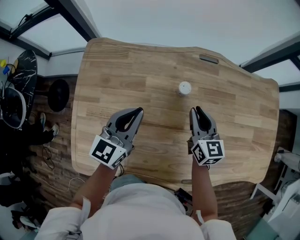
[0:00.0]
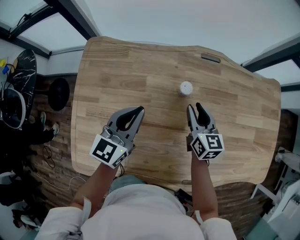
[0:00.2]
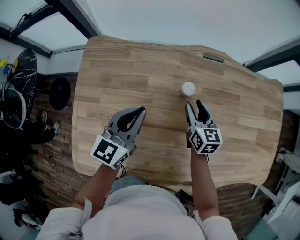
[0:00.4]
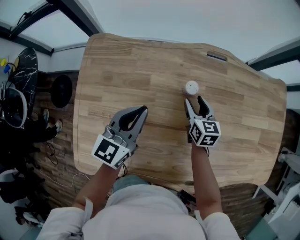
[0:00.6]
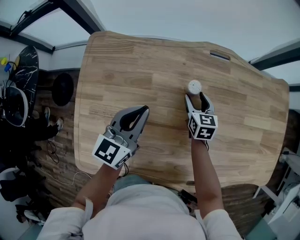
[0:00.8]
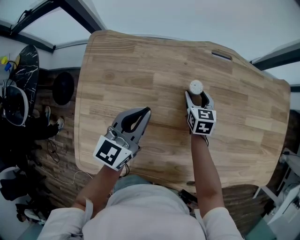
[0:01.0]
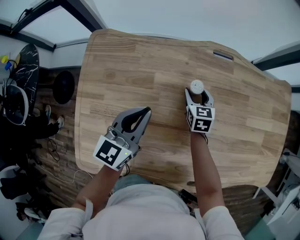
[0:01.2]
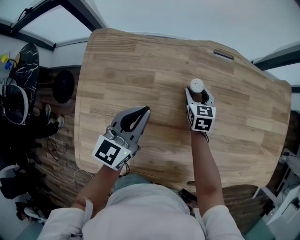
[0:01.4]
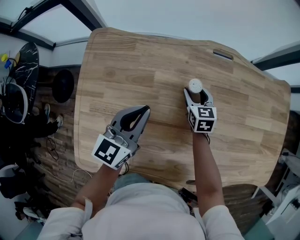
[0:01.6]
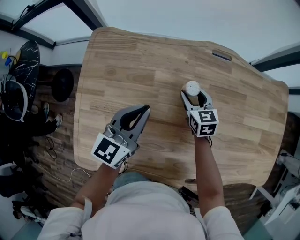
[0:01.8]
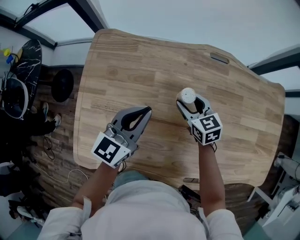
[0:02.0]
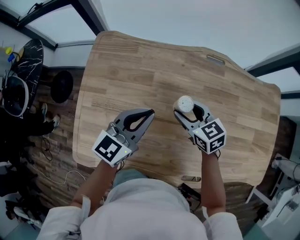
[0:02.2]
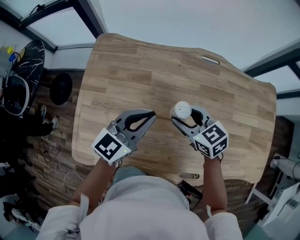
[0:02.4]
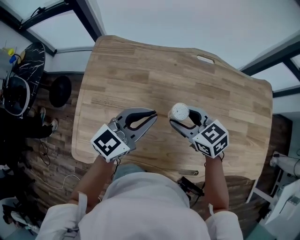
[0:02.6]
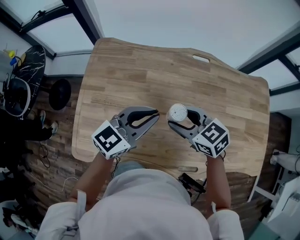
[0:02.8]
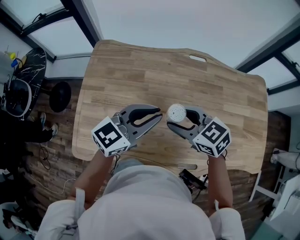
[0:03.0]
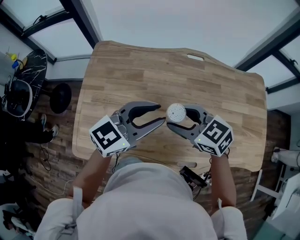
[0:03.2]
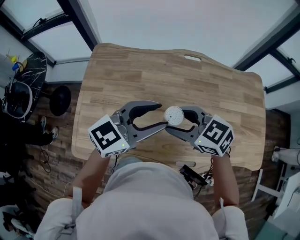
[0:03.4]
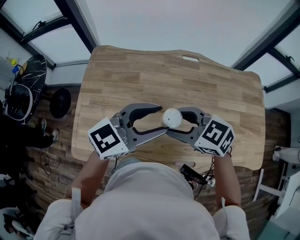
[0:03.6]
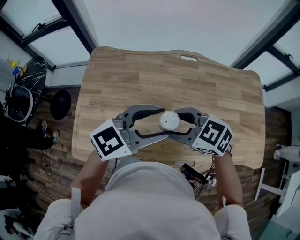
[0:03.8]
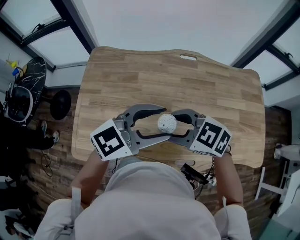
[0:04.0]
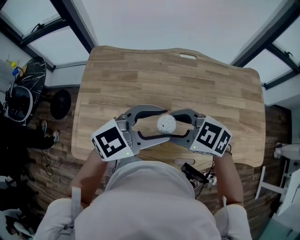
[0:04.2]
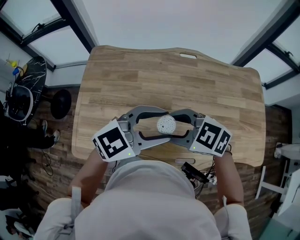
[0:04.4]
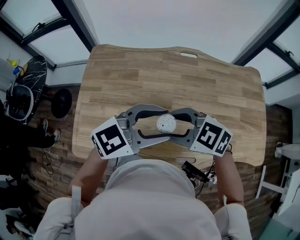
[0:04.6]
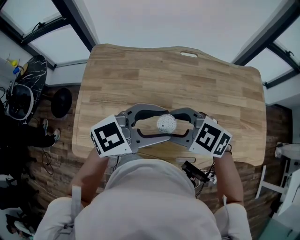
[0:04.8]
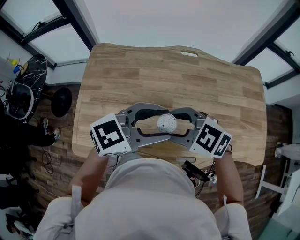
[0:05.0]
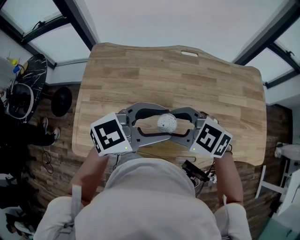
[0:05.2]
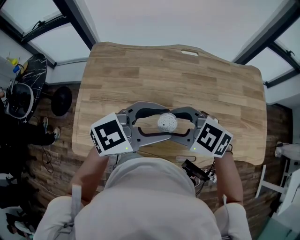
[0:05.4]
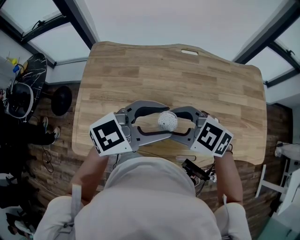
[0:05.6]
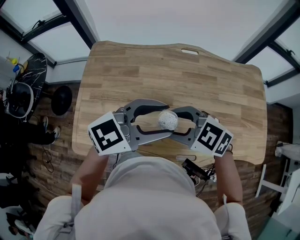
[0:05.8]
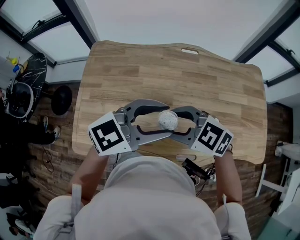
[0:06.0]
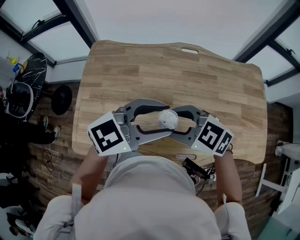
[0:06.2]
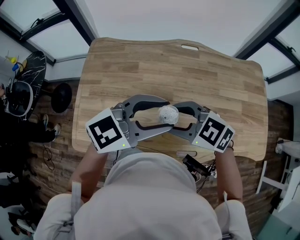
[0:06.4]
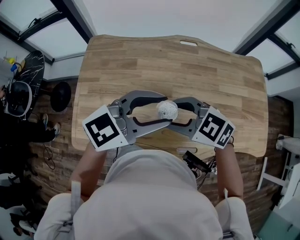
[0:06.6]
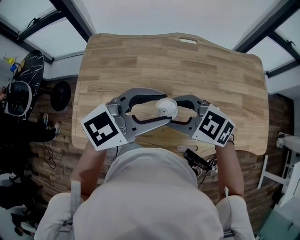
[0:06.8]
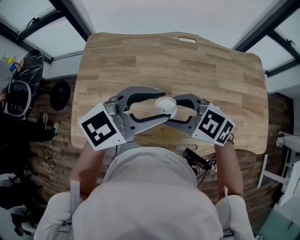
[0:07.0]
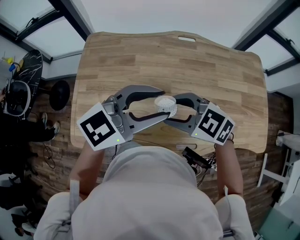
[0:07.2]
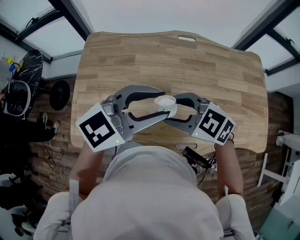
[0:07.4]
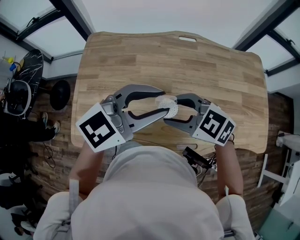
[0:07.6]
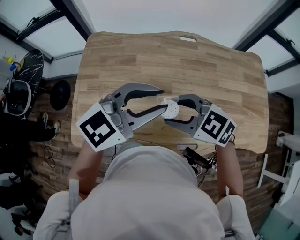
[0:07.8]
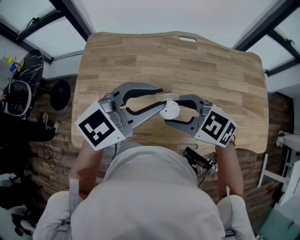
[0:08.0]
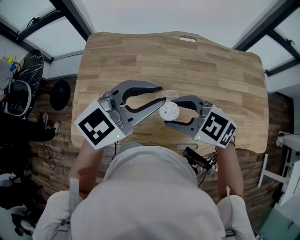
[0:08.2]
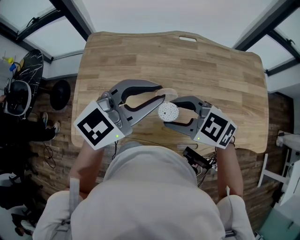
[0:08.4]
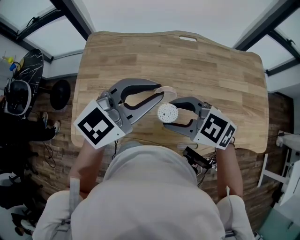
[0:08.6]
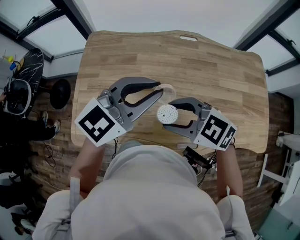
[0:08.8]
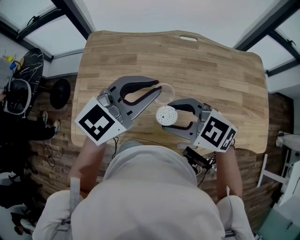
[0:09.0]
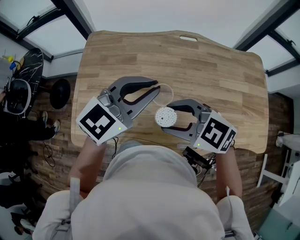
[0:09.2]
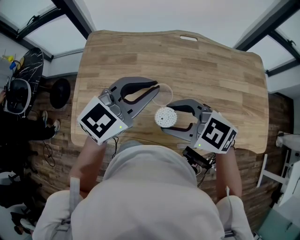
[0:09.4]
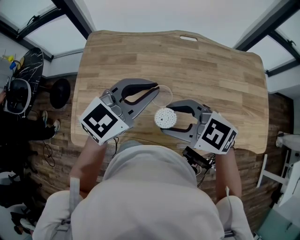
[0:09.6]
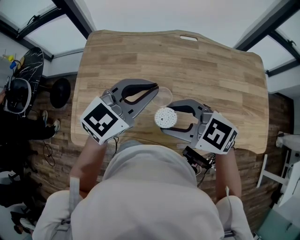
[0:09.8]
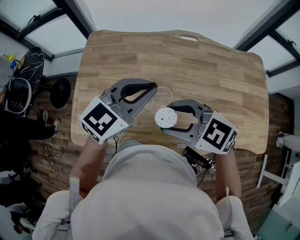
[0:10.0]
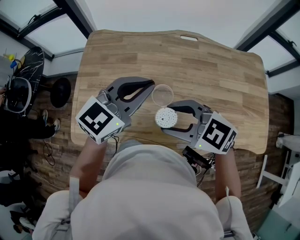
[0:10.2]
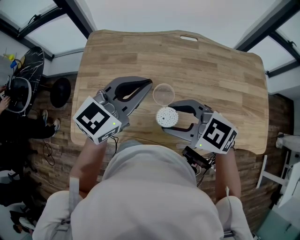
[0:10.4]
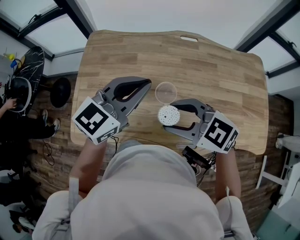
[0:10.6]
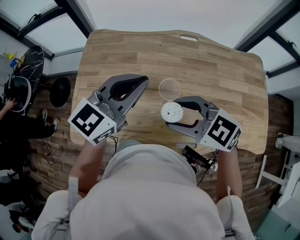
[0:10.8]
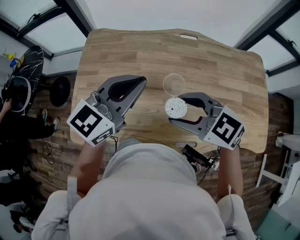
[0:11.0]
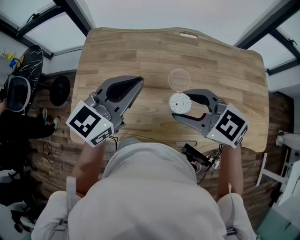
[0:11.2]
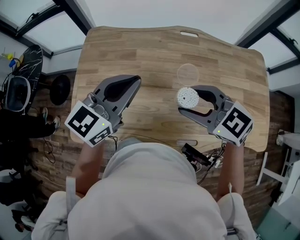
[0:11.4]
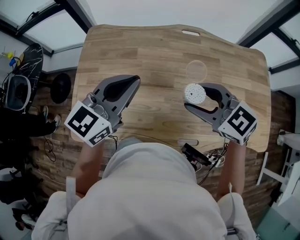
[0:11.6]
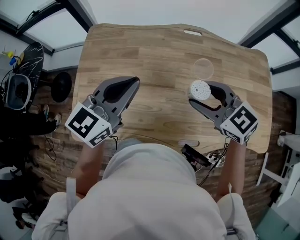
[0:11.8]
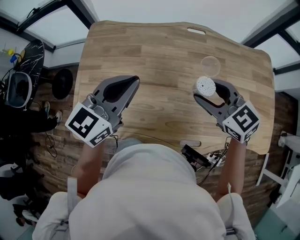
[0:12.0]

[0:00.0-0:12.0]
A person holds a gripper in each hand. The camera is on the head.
0:00.0 to 0:01.6: The right gripper goes about 15 cm downward and forward, and opens its fingers.
0:01.6 to 0:03.0: The left gripper shifts roughly 20 cm backward, upward and to the right, and swivels about 30 degrees; the right gripper shifts roughly 30 cm backward and upward, and swivels about 40 degrees.
0:03.0 to 0:04.4: The right gripper ends up approximately 10 cm from where it was, while the left gripper shifts by roughly 10 cm, turns by about 20 degrees, and opens up.
0:04.4 to 0:06.0: There are only small adjustments of the grippers.
0:06.0 to 0:07.6: The left gripper closes up.
0:07.6 to 0:09.0: The left gripper closes its fingers.
0:09.0 to 0:10.4: The grippers stay close to where they were, moving slightly.
0:10.4 to 0:12.0: The left gripper ends up roughly 5 cm from where it was. Meanwhile the right gripper moves roughly 15 cm, and rotates roughly 20 degrees.

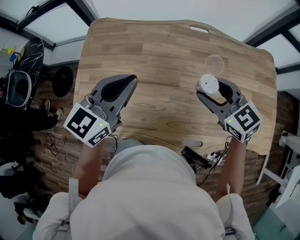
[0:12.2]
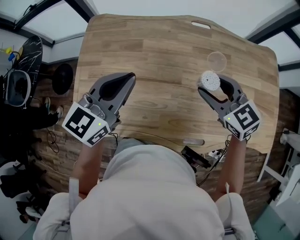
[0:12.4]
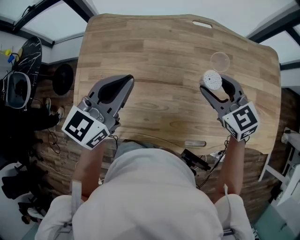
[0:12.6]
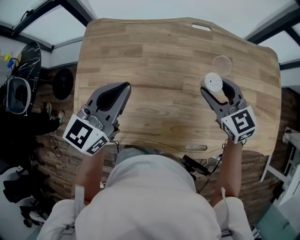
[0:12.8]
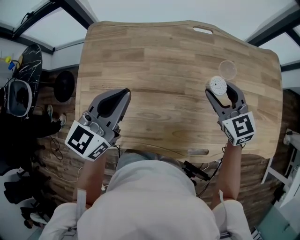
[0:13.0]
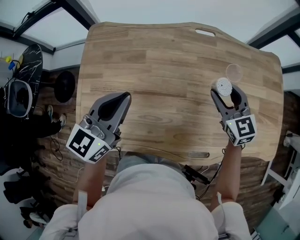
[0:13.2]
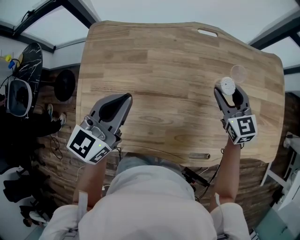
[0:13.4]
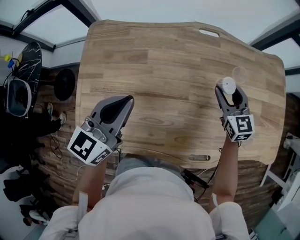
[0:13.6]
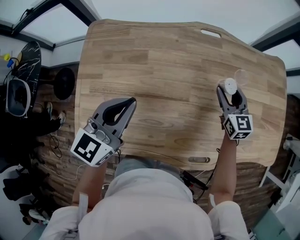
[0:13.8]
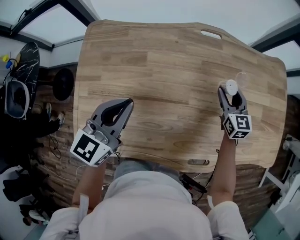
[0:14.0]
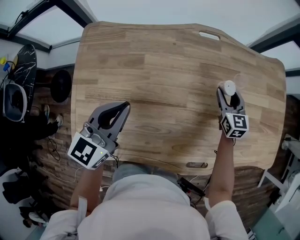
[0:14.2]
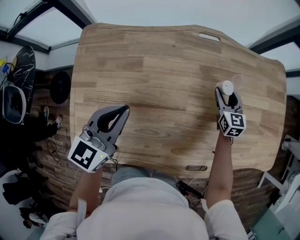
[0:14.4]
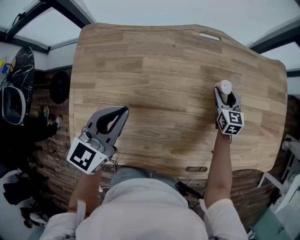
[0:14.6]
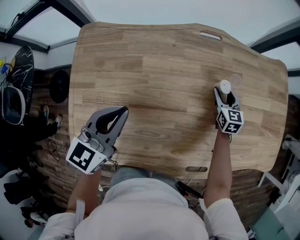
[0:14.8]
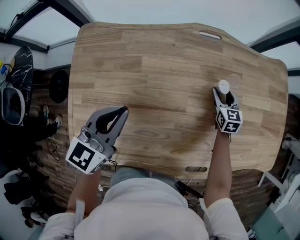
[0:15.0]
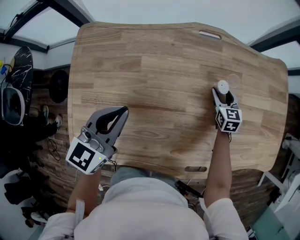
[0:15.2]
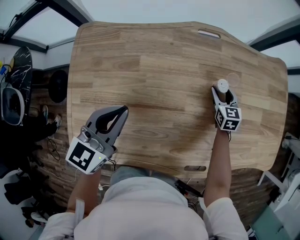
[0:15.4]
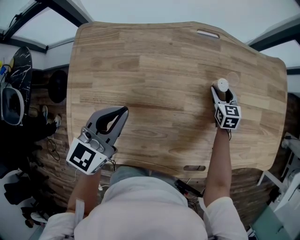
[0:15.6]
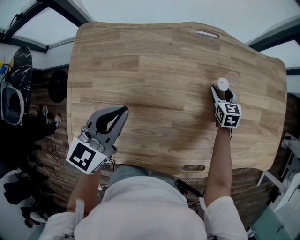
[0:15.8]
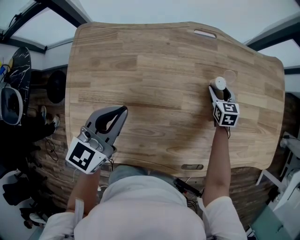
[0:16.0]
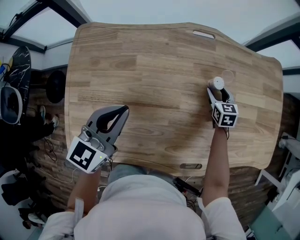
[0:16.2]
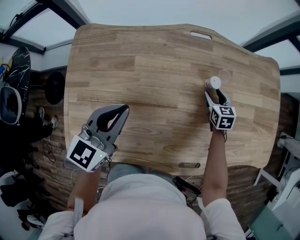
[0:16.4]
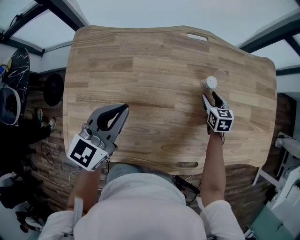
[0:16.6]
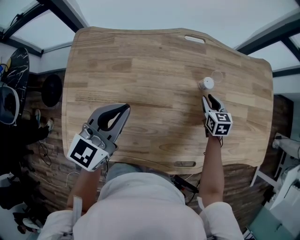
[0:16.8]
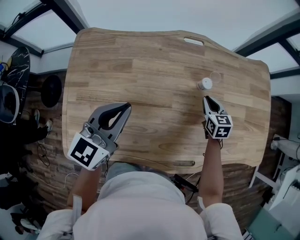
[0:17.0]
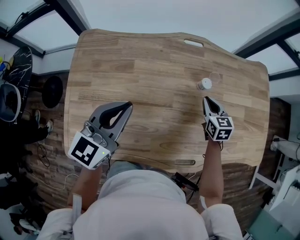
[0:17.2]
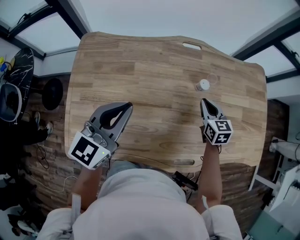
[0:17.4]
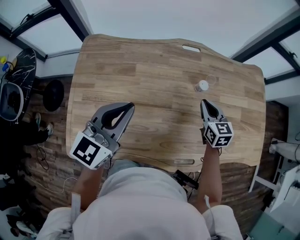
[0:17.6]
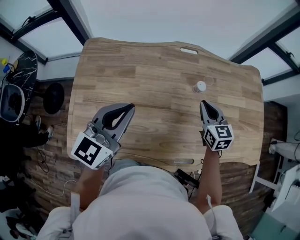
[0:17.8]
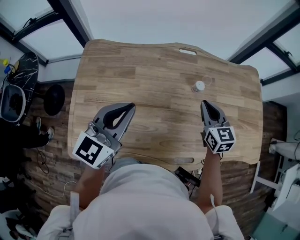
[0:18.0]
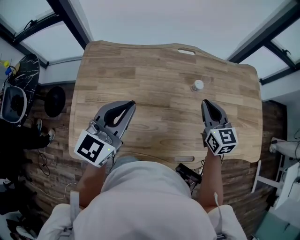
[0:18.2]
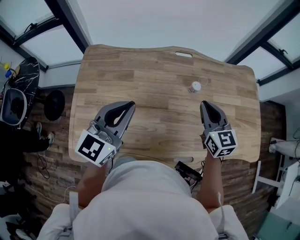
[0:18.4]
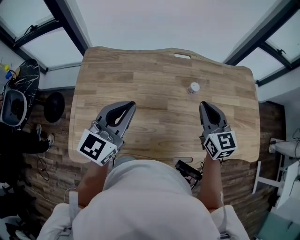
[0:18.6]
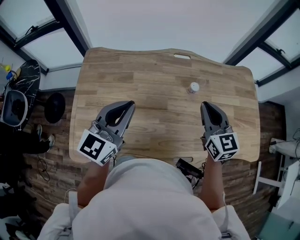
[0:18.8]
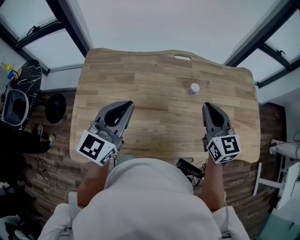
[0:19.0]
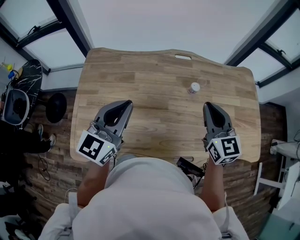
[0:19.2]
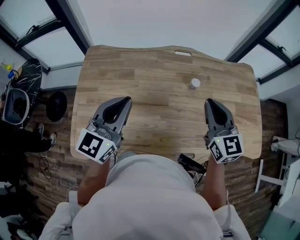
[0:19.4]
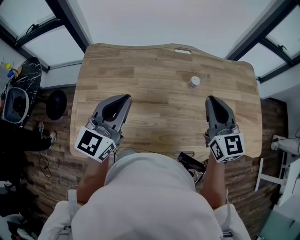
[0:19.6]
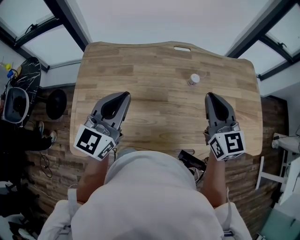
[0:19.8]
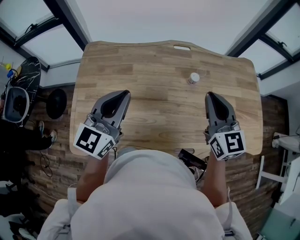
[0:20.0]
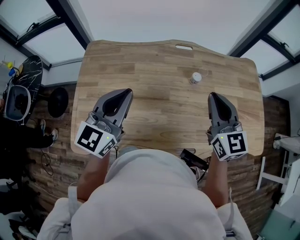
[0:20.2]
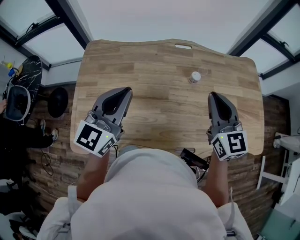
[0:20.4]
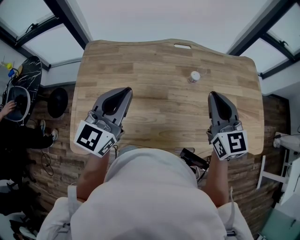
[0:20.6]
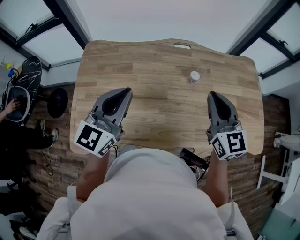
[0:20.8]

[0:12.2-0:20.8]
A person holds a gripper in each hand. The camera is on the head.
0:12.2 to 0:13.6: The right gripper moves forward, downward and to the right, about 15 cm, and turns by some 30 degrees, while the left gripper travels downward by some 5 cm.
0:13.6 to 0:15.0: The right gripper moves downward and forward, some 15 cm. Meanwhile the left gripper is displaced downward by about 5 cm.
0:15.0 to 0:16.6: The grippers stay close to where they were, moving slightly.
0:16.6 to 0:18.0: The left gripper goes some 10 cm upward and backward; the right gripper goes about 25 cm upward and backward, swivels about 20 degrees, and closes its fingers.
0:18.0 to 0:19.4: The right gripper moves upward and backward, about 15 cm.
0:19.4 to 0:20.8: There are only small adjustments of the grippers.

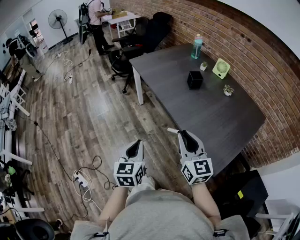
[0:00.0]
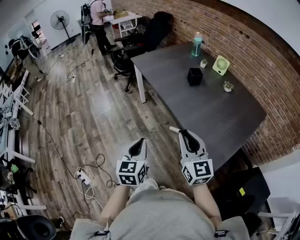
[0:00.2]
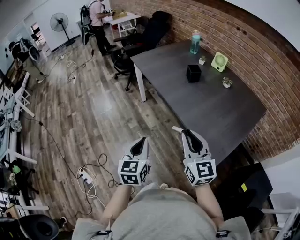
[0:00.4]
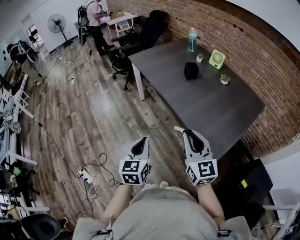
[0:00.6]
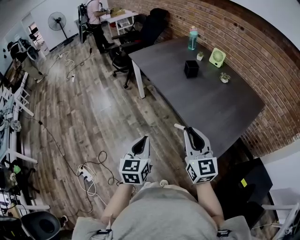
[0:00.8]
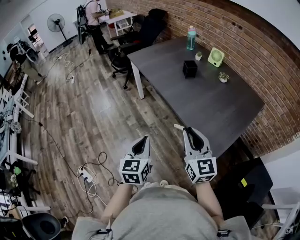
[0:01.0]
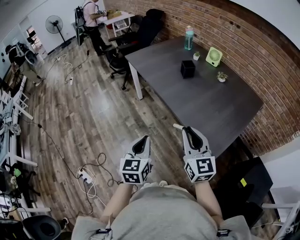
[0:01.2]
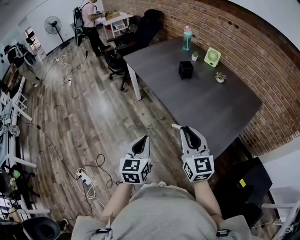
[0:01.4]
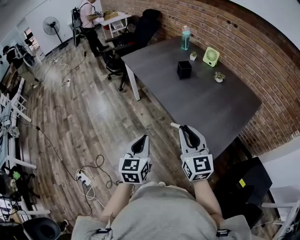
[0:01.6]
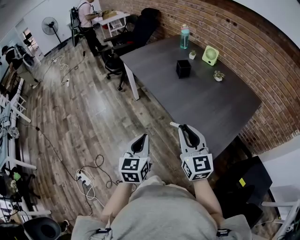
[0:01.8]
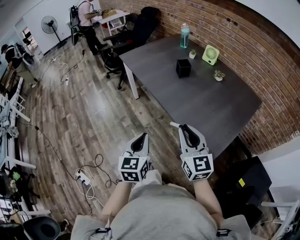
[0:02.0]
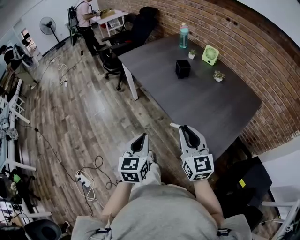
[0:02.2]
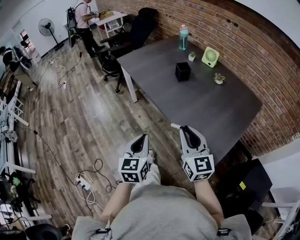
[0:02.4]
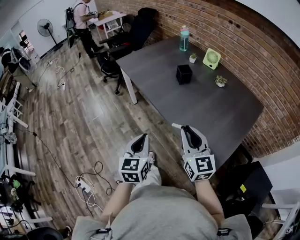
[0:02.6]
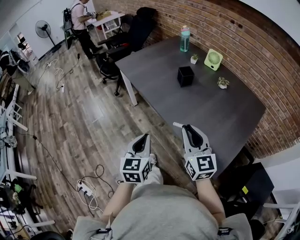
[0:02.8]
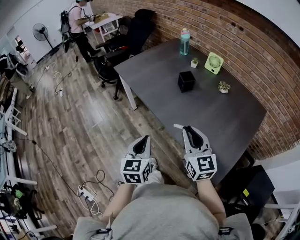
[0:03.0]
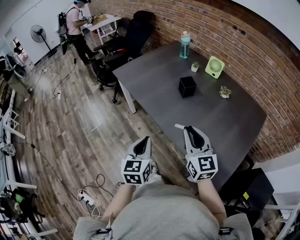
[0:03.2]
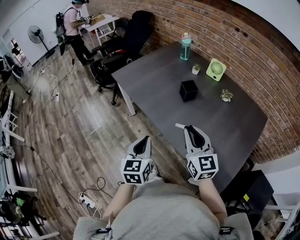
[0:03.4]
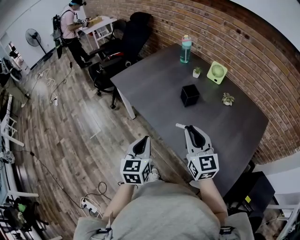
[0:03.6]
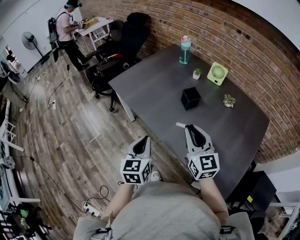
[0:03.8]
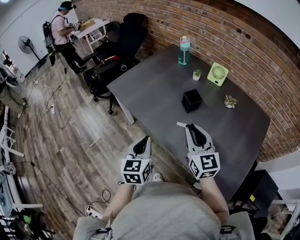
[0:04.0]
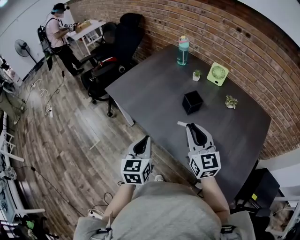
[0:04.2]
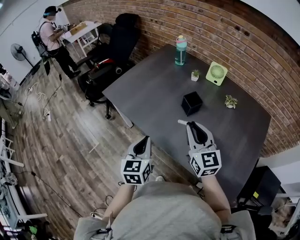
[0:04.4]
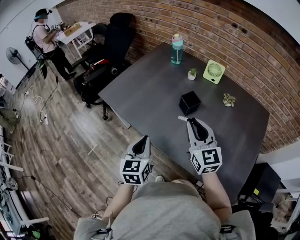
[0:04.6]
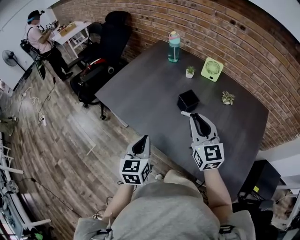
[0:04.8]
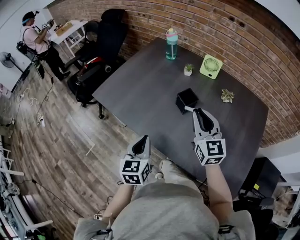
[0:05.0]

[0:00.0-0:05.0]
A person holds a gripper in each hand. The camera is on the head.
0:00.0 to 0:01.6: The right gripper shifts about 10 cm to the right and backward. Meanwhile the left gripper is displaced to the right by roughly 10 cm.
0:01.6 to 0:03.4: Both grippers travel together forward, approximately 25 cm.
0:03.4 to 0:05.0: Both grippers move forward, approximately 20 cm.
